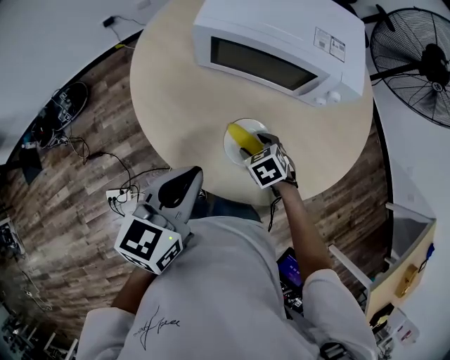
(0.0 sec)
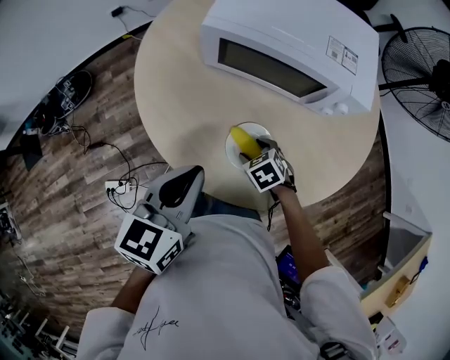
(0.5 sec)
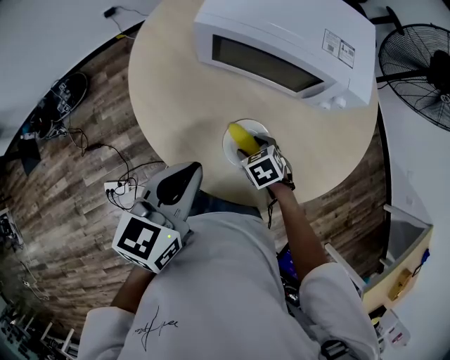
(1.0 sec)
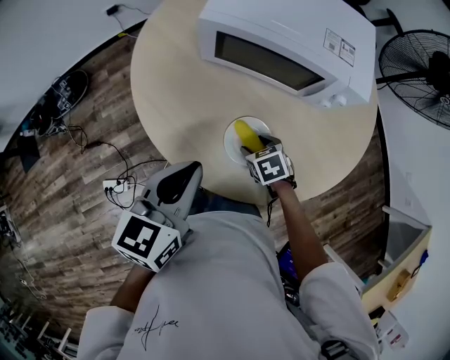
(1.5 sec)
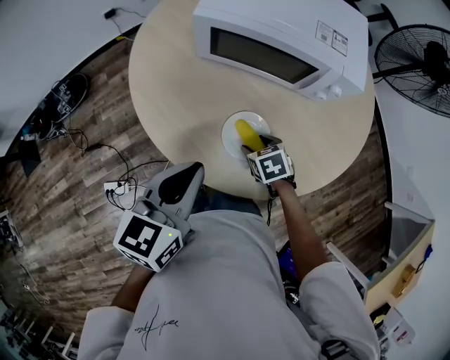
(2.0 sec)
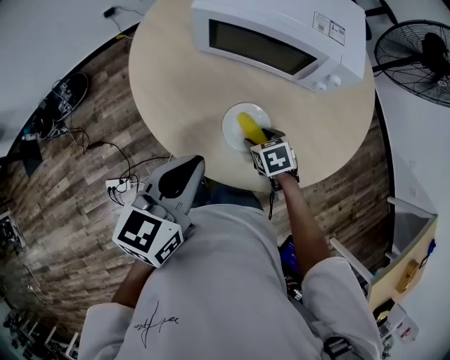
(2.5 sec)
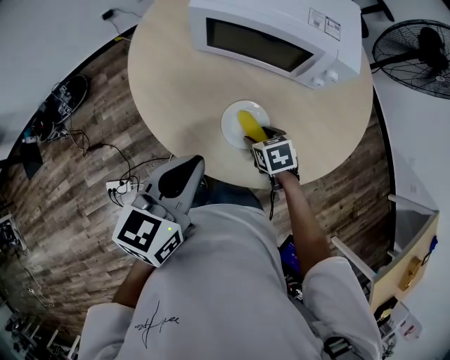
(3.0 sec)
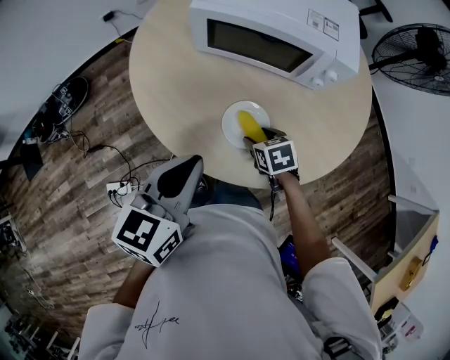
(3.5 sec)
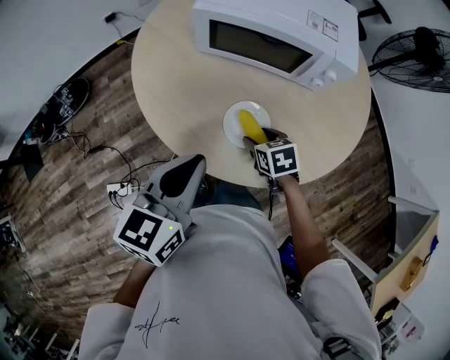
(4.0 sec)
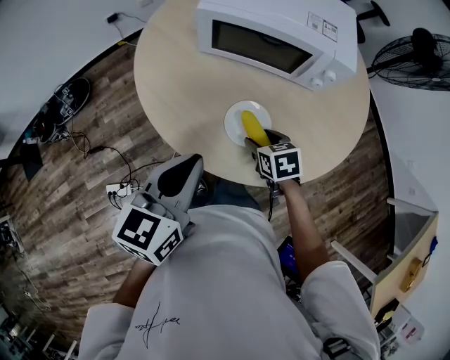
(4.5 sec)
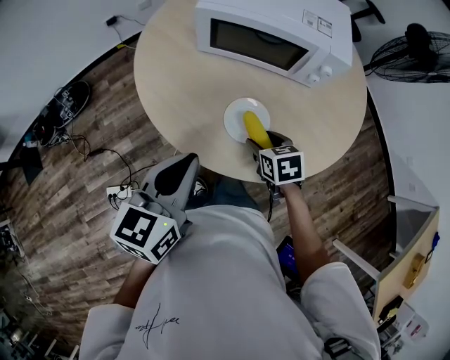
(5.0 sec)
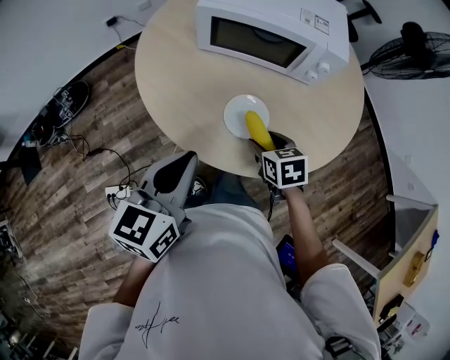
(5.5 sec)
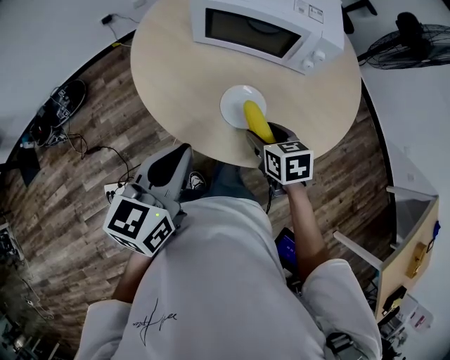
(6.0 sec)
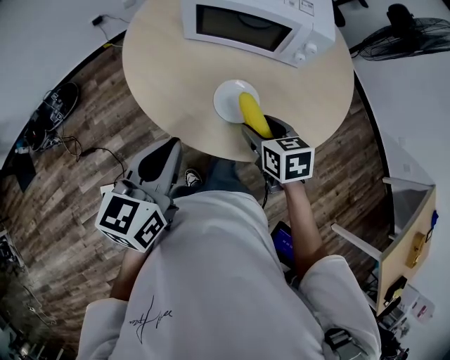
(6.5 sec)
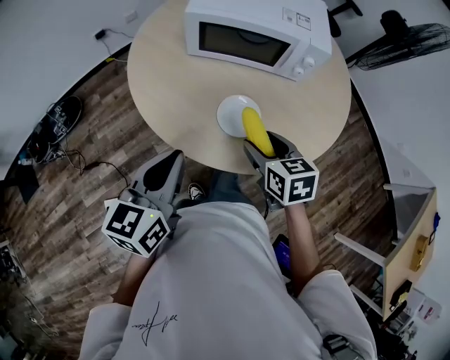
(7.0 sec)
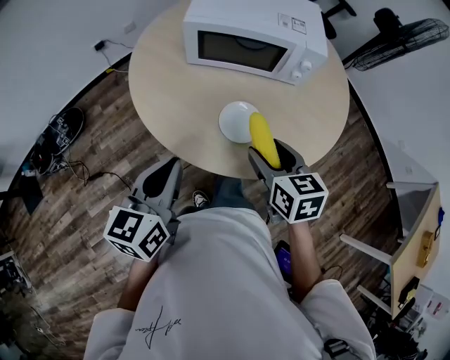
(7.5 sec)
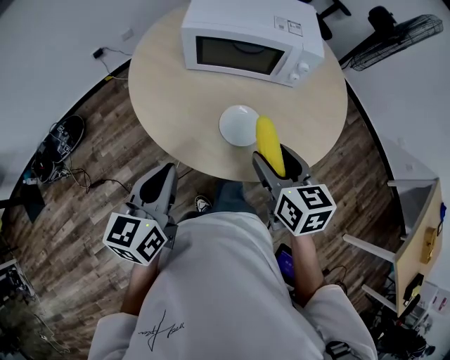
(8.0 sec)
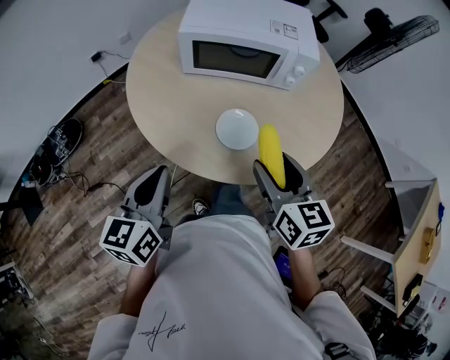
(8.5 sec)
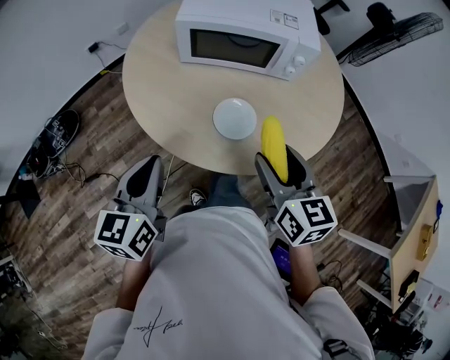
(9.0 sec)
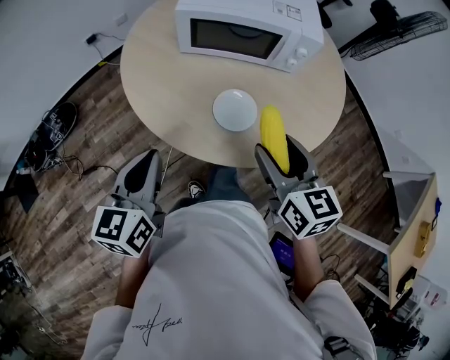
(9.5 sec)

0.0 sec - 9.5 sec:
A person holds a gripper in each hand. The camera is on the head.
0.0 sec - 2.0 sec: The grippers stay close to where they were, moving slightly.
2.0 sec - 4.0 sec: The grippers move only a little.
4.0 sec - 5.5 sec: The right gripper goes some 5 cm upward.
5.5 sec - 7.5 sec: The right gripper travels upward by roughly 15 cm, and rotates roughly 20 degrees.
7.5 sec - 9.5 sec: The right gripper is displaced upward by roughly 5 cm.

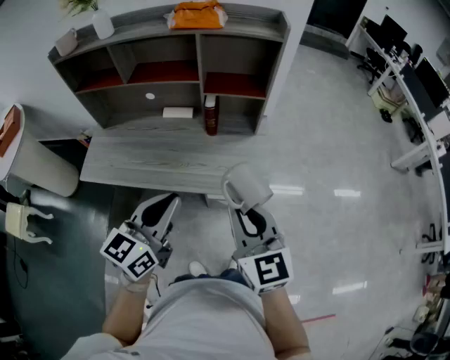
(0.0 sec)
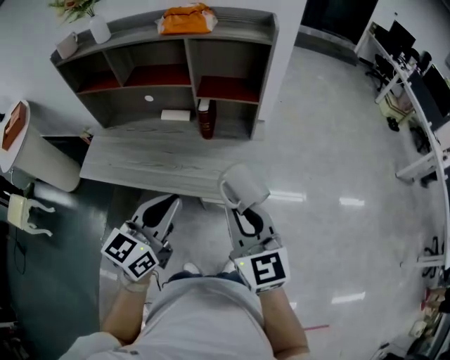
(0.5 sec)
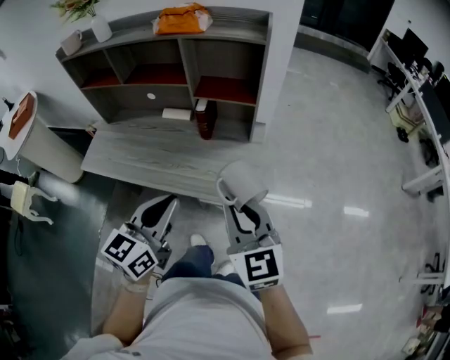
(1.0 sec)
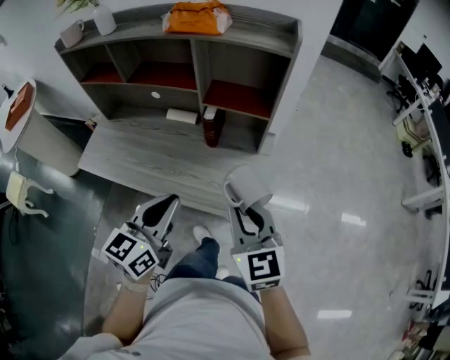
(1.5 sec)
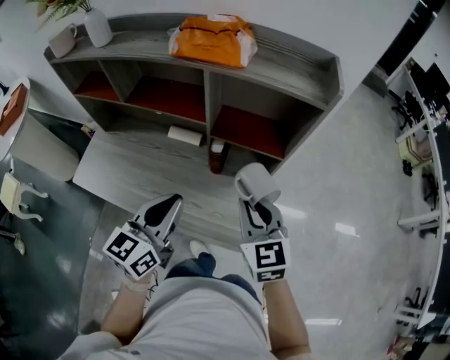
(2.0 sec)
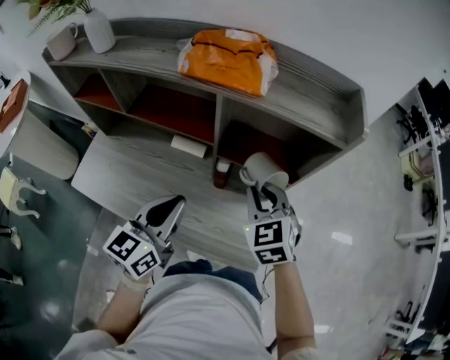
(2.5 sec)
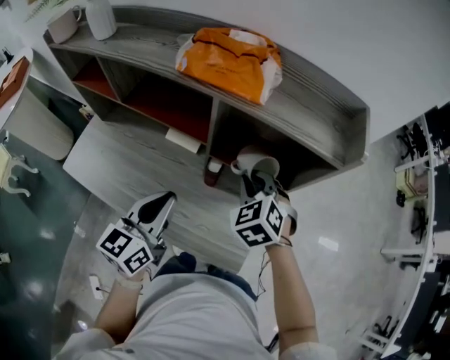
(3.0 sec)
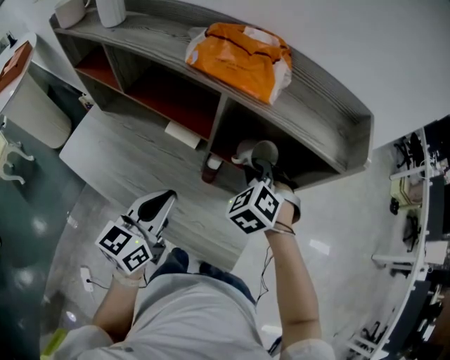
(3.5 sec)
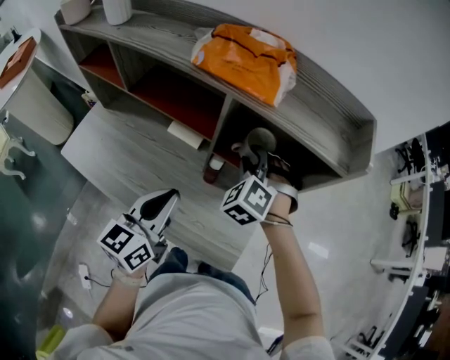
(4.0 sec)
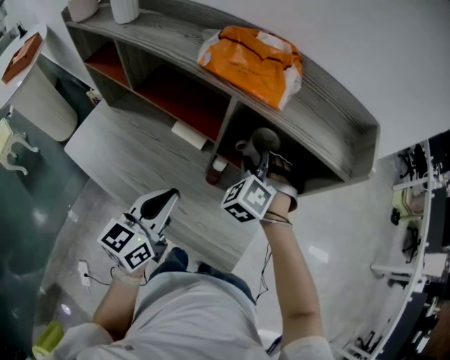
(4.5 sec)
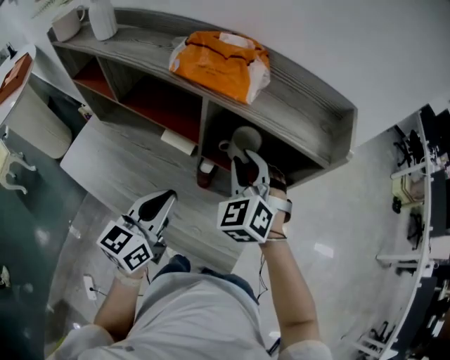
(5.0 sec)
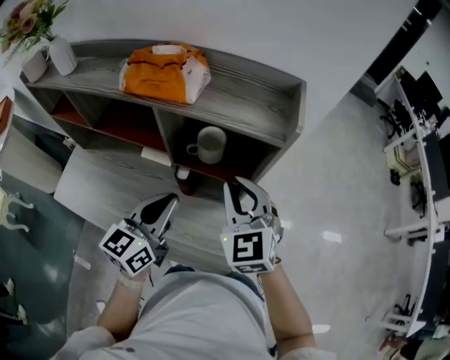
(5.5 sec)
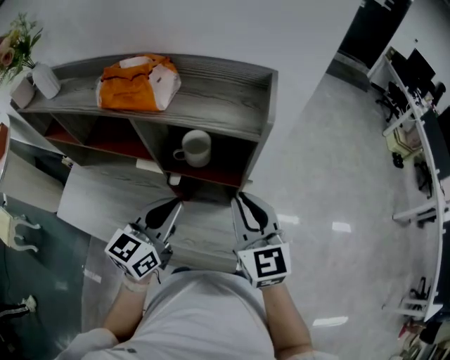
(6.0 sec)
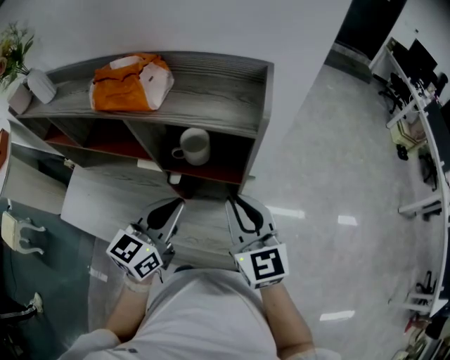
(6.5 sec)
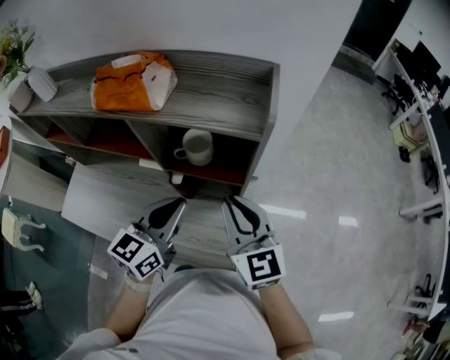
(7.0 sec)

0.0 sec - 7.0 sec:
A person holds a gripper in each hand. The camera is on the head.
0.0 sec - 2.0 sec: Both grippers move forward, roughly 25 cm.
2.0 sec - 3.5 sec: The right gripper goes some 20 cm forward, and rolls counterclockwise, seen from behind, by about 40 degrees, while the left gripper shifts some 5 cm forward.
3.5 sec - 5.0 sec: The right gripper shifts approximately 10 cm upward, and changes its angle by about 20 degrees.
5.0 sec - 7.0 sec: The left gripper goes roughly 10 cm to the right. The right gripper goes roughly 15 cm to the right and backward, and twists some 50 degrees clockwise, seen from behind.

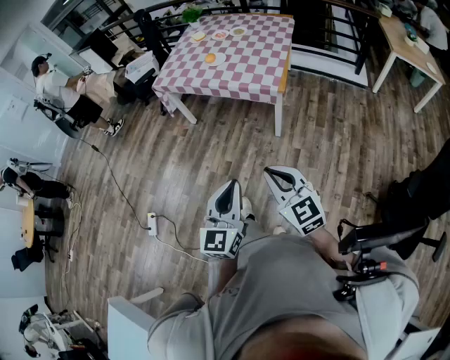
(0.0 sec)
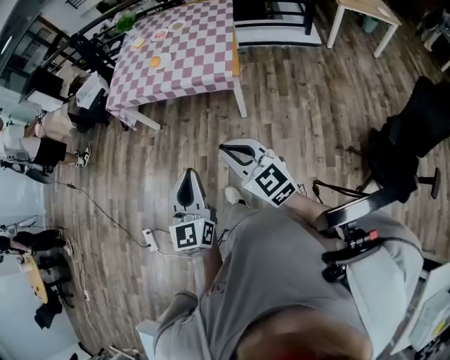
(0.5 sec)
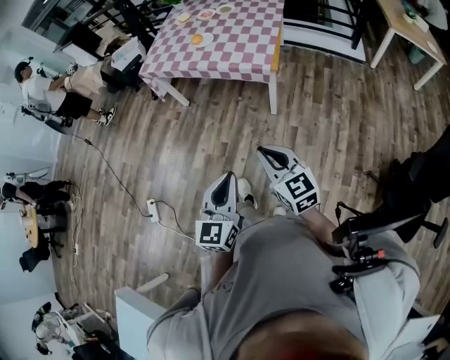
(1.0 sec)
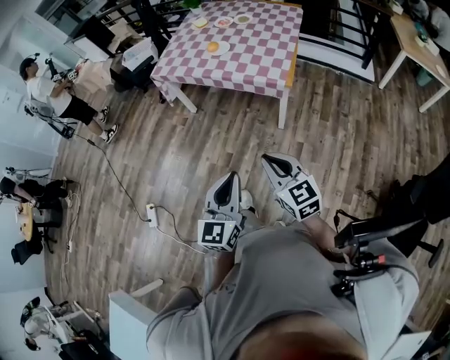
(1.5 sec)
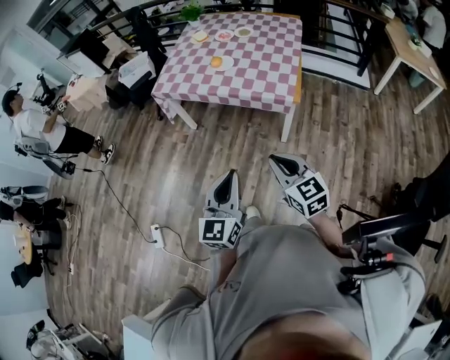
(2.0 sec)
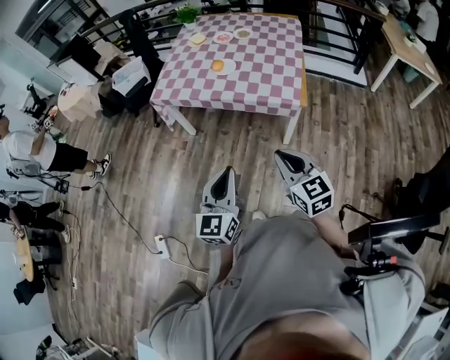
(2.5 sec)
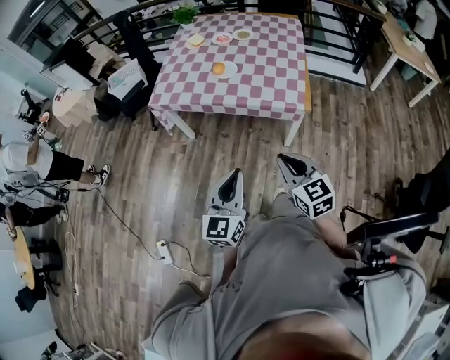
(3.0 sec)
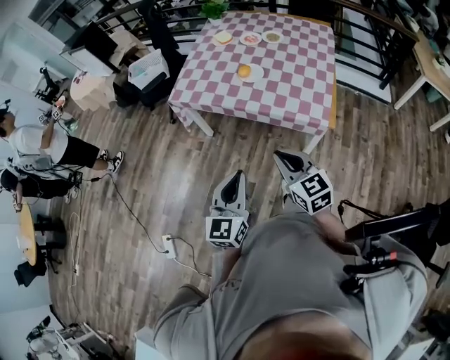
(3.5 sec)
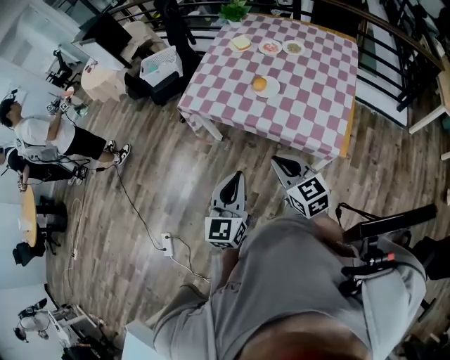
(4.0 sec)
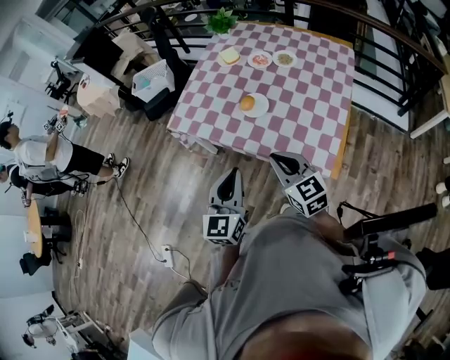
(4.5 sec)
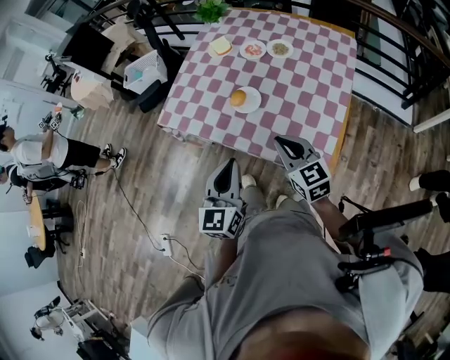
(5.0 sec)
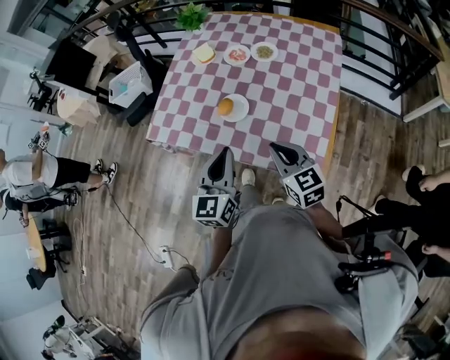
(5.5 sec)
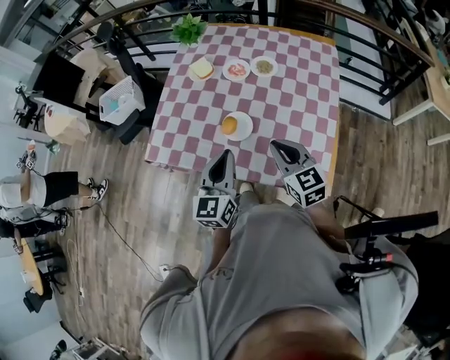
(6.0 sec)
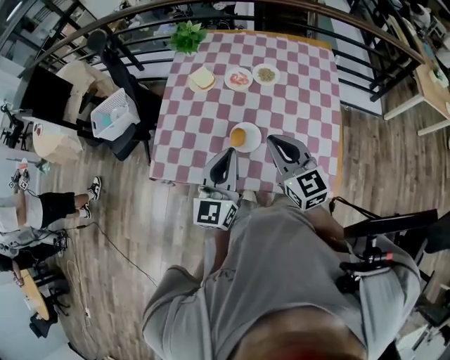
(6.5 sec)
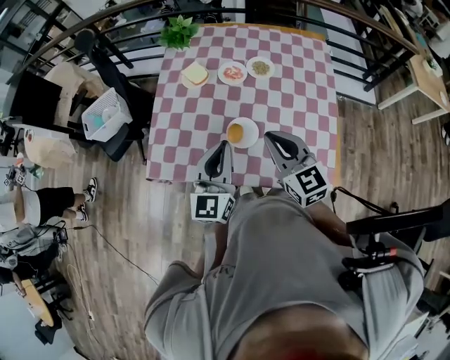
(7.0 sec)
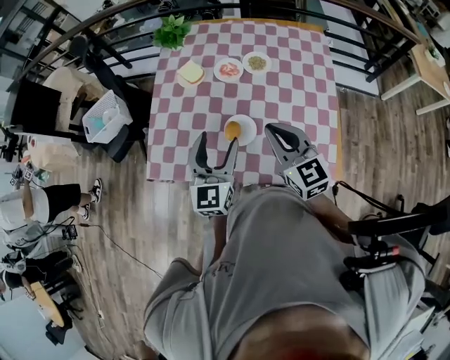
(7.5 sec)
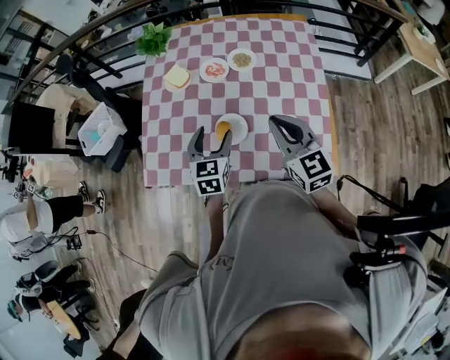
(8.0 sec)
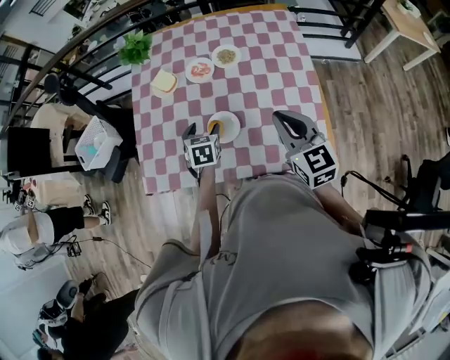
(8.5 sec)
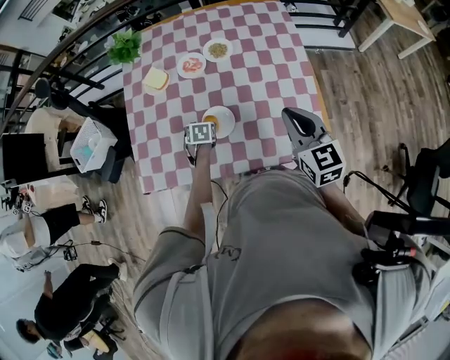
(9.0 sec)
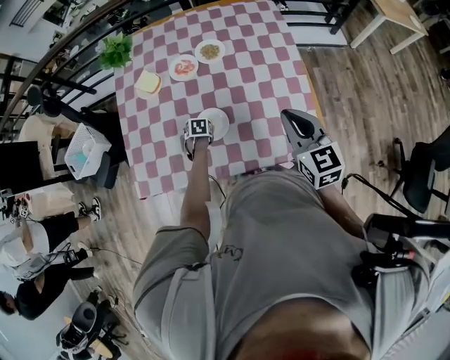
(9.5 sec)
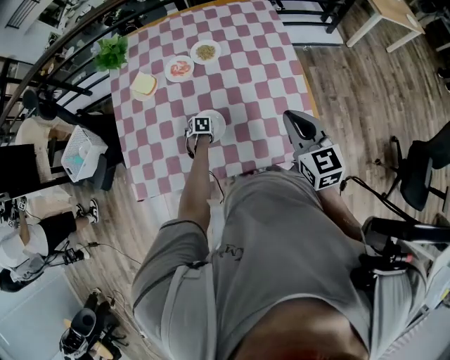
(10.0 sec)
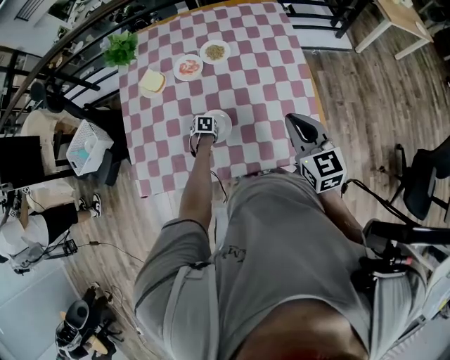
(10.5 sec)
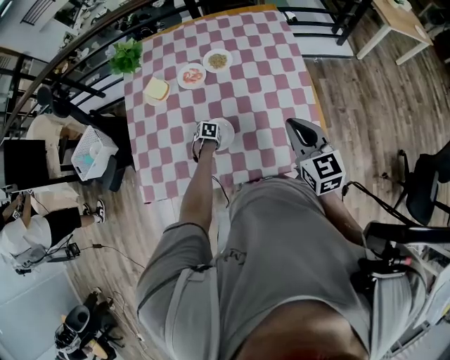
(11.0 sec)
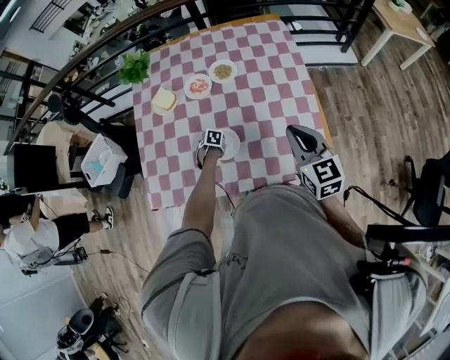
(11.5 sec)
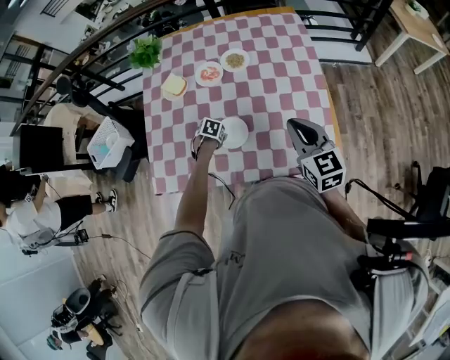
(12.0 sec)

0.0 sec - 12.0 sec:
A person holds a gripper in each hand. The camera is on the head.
0.0 sec - 2.0 sec: The left gripper swings forward and backward, approximately 20 cm each way, with 2 reversals. Meanwhile the right gripper moves forward, approximately 20 cm.
2.0 sec - 4.0 sec: Both grippers move forward, approximately 30 cm.
4.0 sec - 6.0 sec: The right gripper travels forward and to the right by roughly 35 cm, while the left gripper travels forward by some 35 cm.
6.0 sec - 8.0 sec: The right gripper is displaced forward by some 10 cm, and travels to the left and back again, about 10 cm each way, while the left gripper goes roughly 15 cm forward and downward, turns by about 30 degrees, and opens.
8.0 sec - 10.0 sec: The left gripper goes approximately 35 cm downward, and angles its fingers downward, by some 50 degrees. Meanwhile the right gripper shifts by approximately 10 cm.
10.0 sec - 12.0 sec: The left gripper is displaced upward by roughly 5 cm.
